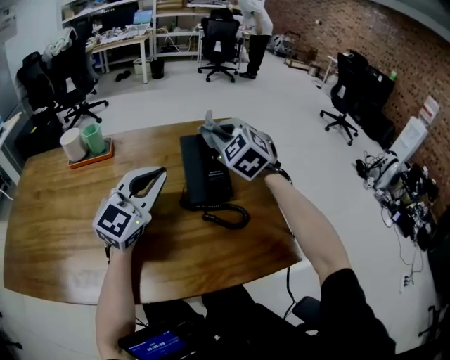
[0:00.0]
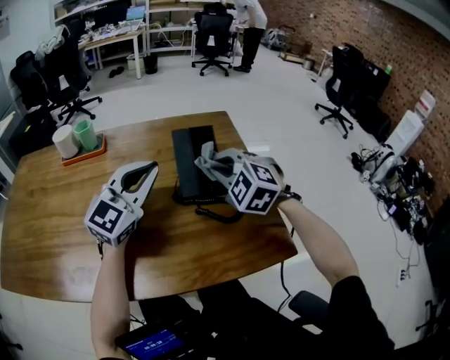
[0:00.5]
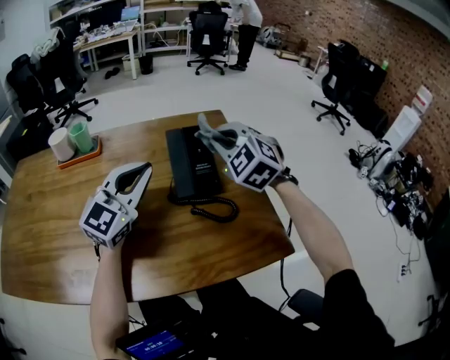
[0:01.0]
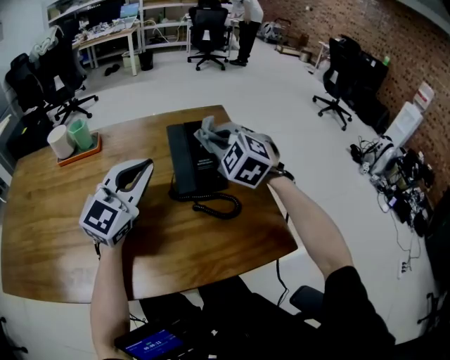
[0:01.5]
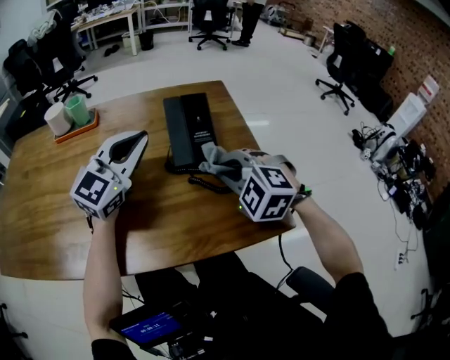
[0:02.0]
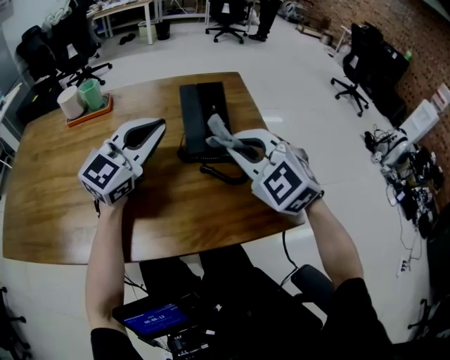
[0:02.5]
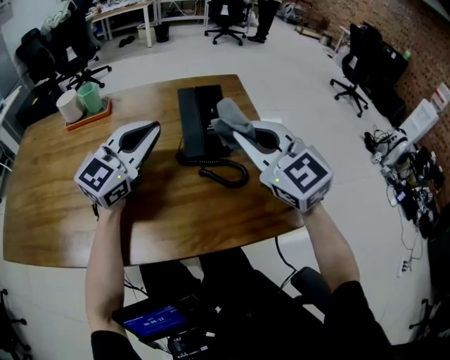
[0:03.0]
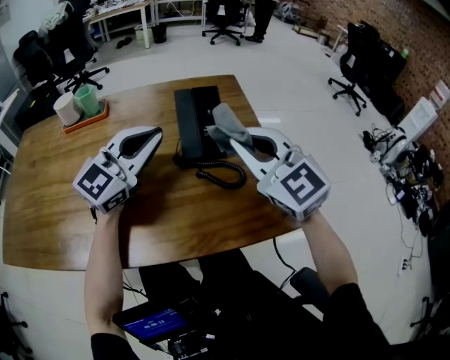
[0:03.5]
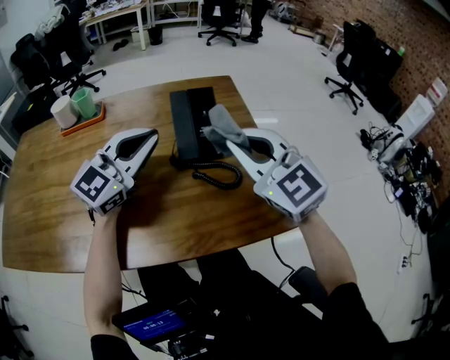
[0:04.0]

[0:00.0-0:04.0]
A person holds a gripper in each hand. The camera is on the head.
0:00.0 to 0:02.0: The right gripper swings forward and backward, roughly 20 cm each way, with 2 reversals, and turns by approximately 20 degrees.
0:02.0 to 0:04.0: The right gripper moves upward, about 10 cm, and points its fingers some 30 degrees further upward.

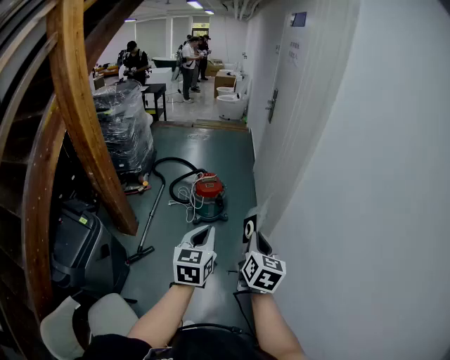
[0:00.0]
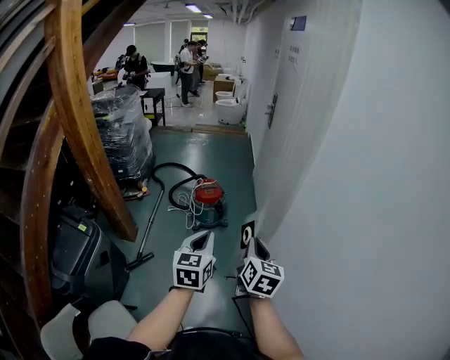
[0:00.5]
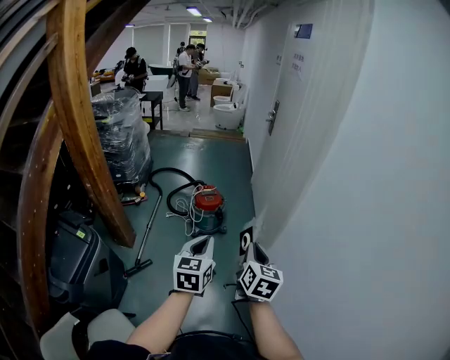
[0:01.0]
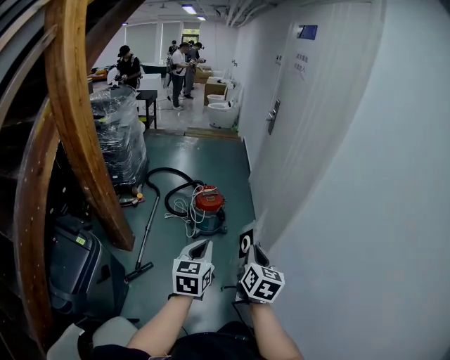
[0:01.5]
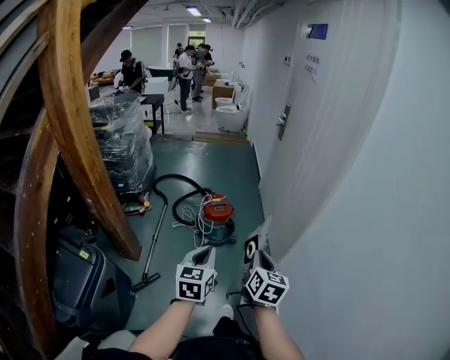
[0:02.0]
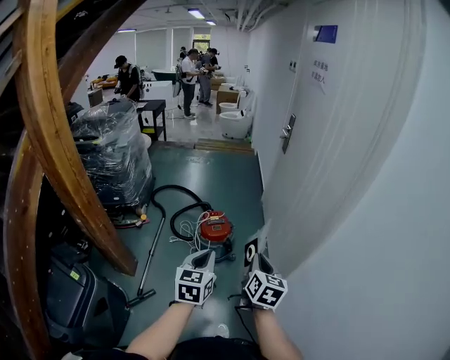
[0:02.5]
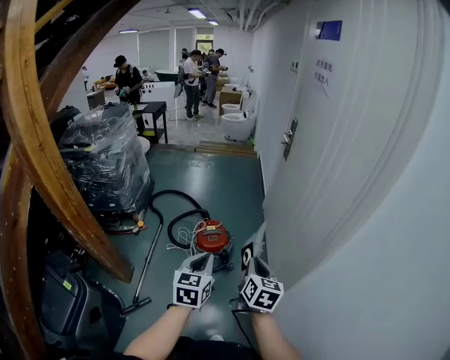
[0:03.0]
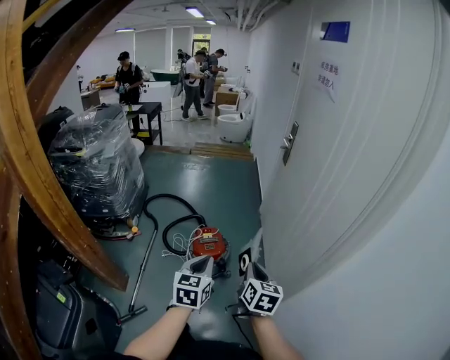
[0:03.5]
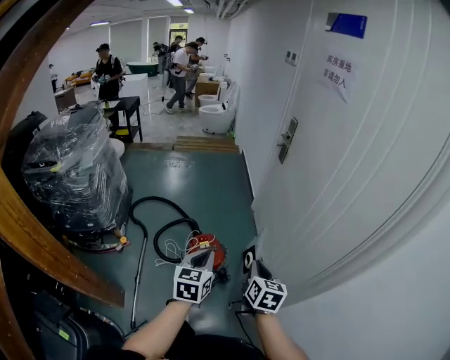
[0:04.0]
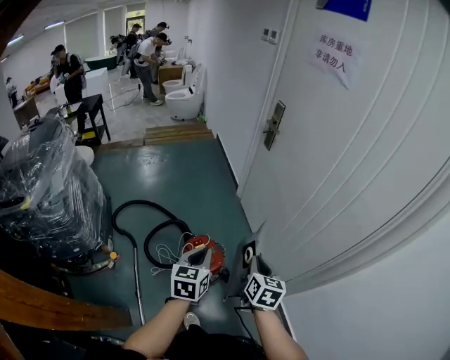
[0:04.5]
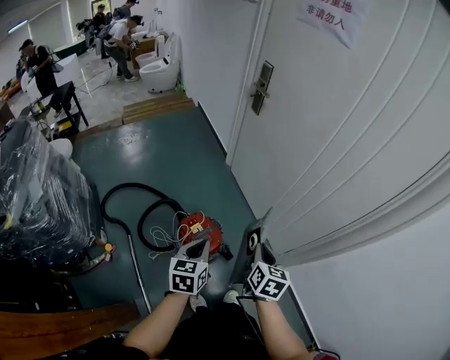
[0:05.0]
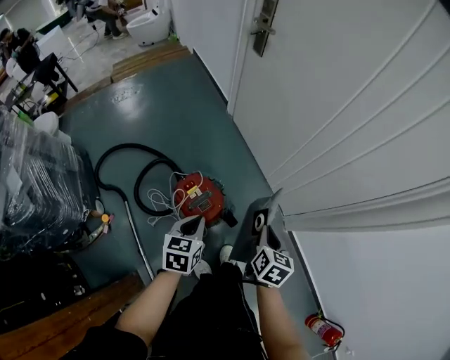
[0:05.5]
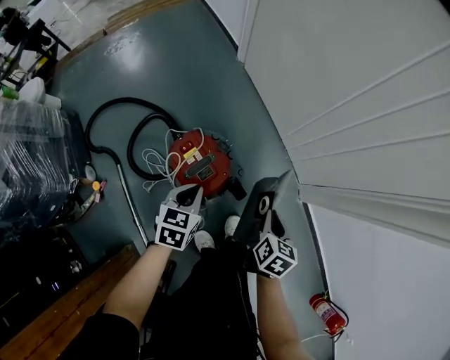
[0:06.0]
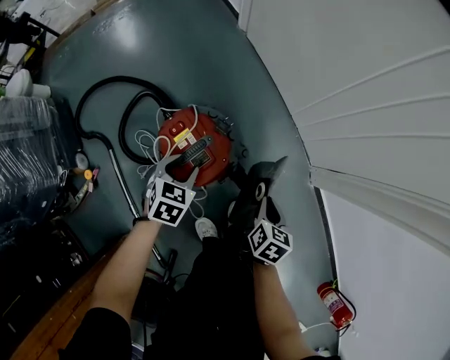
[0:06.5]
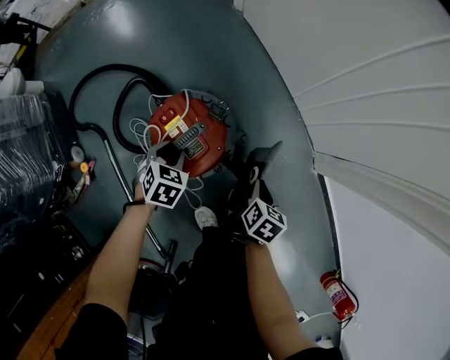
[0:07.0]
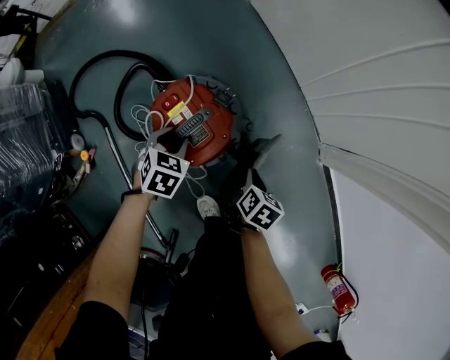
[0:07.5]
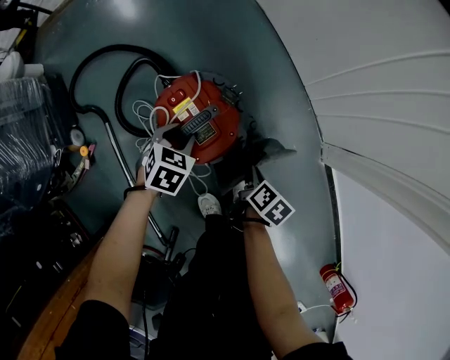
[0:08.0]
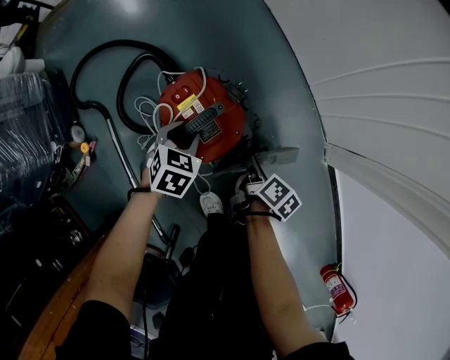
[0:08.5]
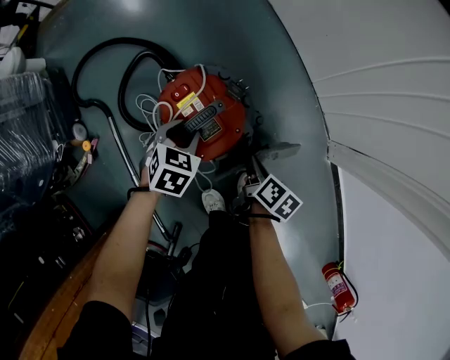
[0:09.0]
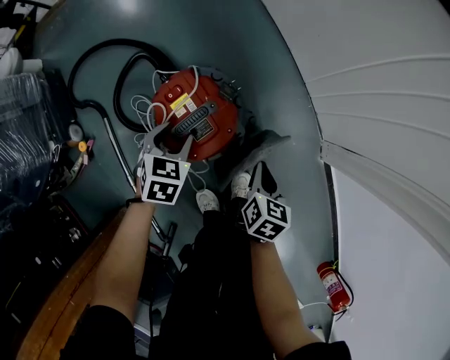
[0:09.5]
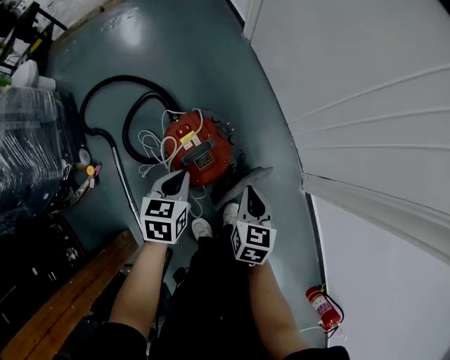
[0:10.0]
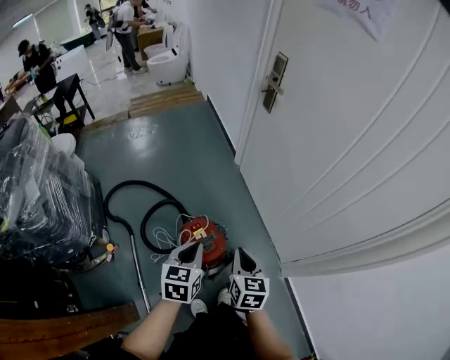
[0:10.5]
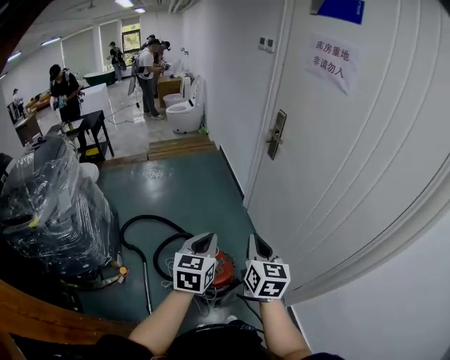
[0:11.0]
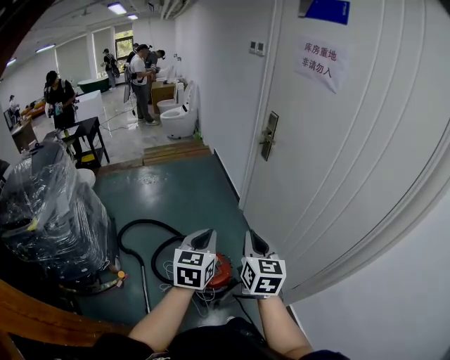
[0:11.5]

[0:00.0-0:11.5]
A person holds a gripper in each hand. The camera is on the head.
0:00.0 to 0:02.0: The two grippers go approximately 15 cm to the left, forward and downward.
0:02.0 to 0:04.0: Both grippers travel together forward, approximately 40 cm.
0:04.0 to 0:06.0: Both grippers move downward, about 35 cm. The right gripper turns by some 40 degrees. Meanwhile the left gripper turns by about 40 degrees.
0:06.0 to 0:07.5: Both grippers move downward, about 20 cm. The left gripper changes its angle by approximately 20 degrees, and opens.
0:07.5 to 0:09.5: The right gripper goes some 5 cm upward.
0:09.5 to 0:11.5: Both grippers travel together upward, roughly 50 cm. The right gripper points its fingers roughly 40 degrees further upward. Meanwhile the left gripper points its fingers approximately 40 degrees further upward, and closes.

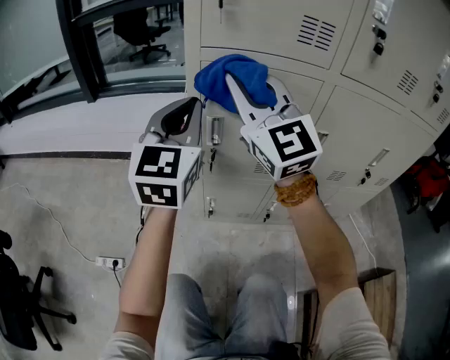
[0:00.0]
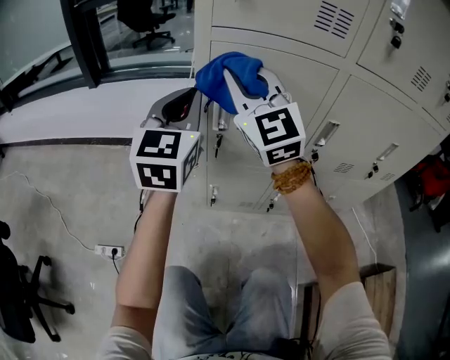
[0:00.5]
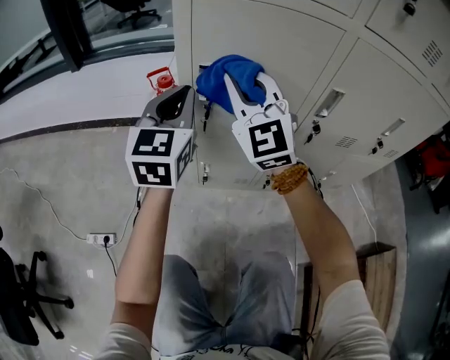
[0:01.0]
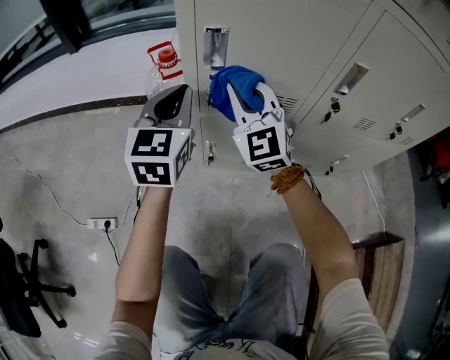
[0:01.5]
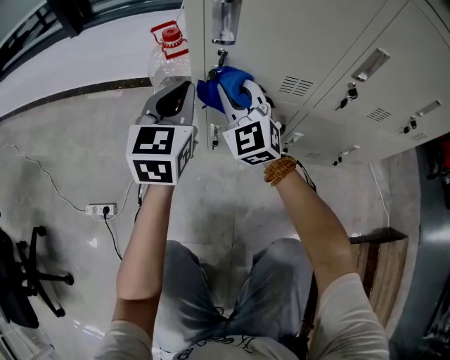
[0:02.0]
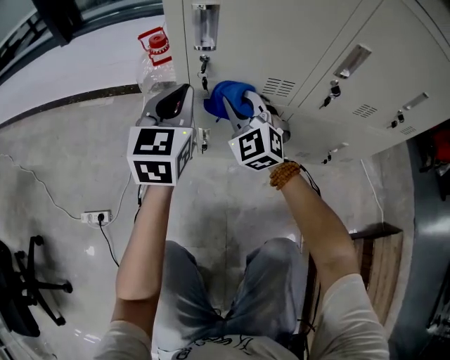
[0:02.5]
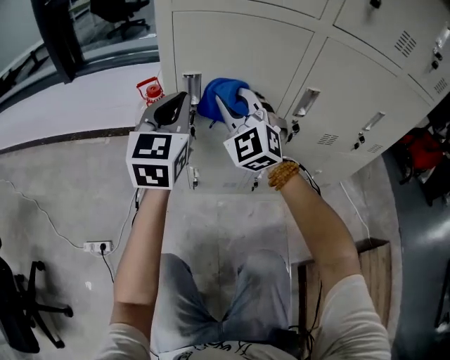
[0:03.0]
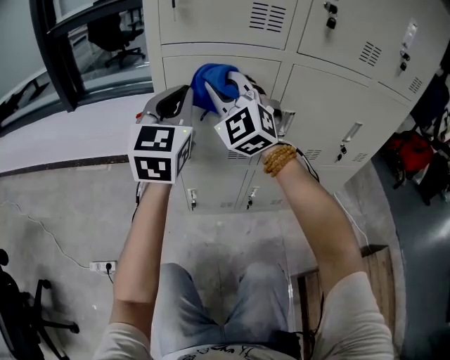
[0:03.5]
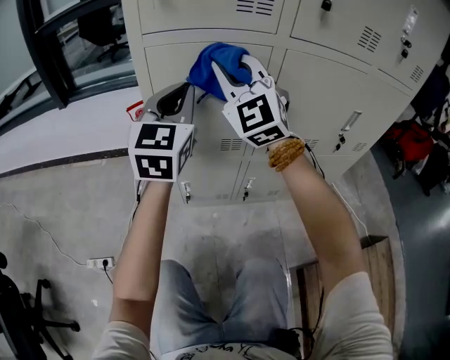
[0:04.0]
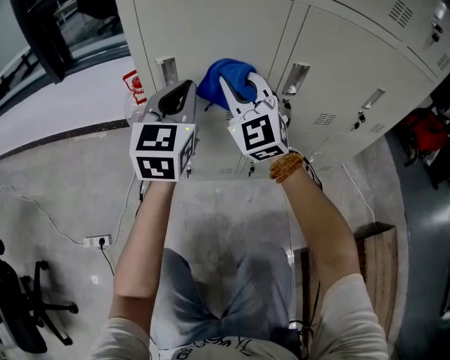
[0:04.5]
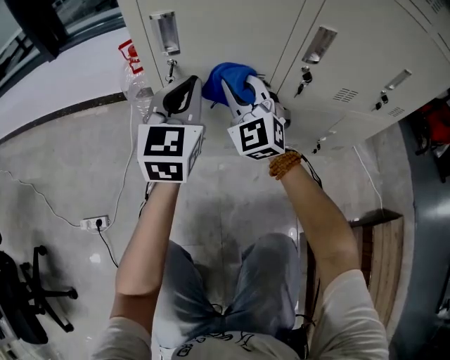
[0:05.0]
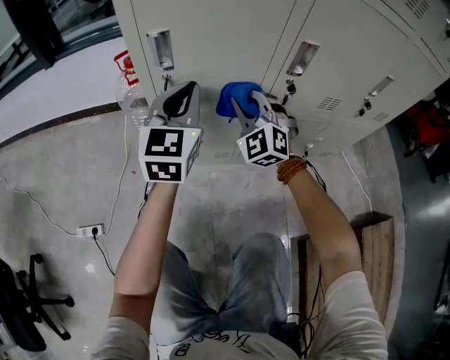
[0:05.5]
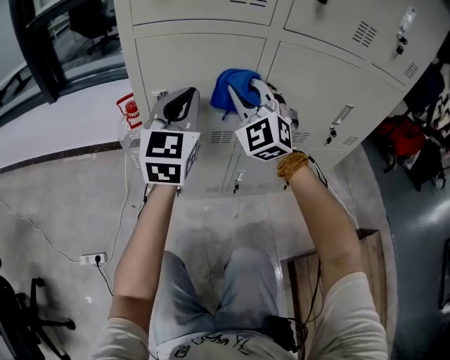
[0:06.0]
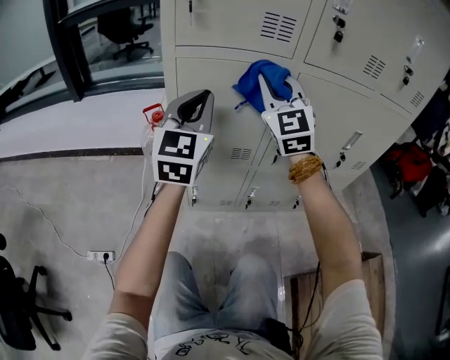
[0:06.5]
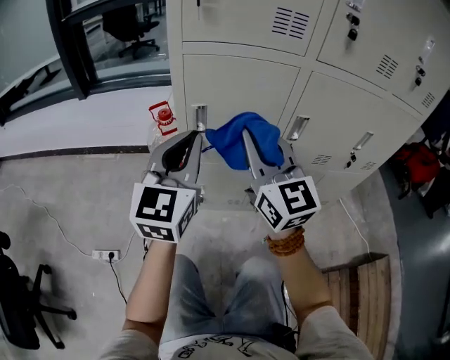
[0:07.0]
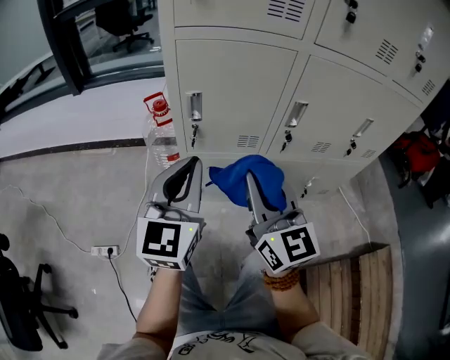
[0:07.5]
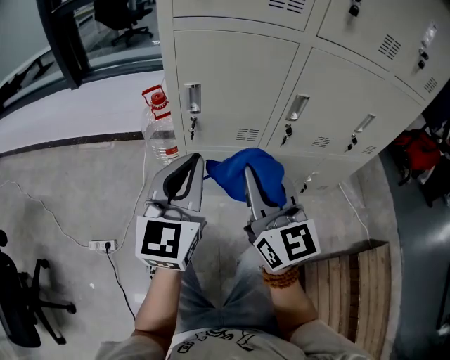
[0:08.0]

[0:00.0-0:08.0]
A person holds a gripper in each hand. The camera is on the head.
0:00.0 to 0:02.0: Both grippers travel together downward, roughly 30 cm. The right gripper swivels approximately 30 degrees.
0:02.0 to 0:04.0: The right gripper moves upward, approximately 30 cm. Meanwhile the left gripper moves upward and to the right, about 25 cm.
0:04.0 to 0:06.0: The left gripper goes downward and returns, some 20 cm each way. The right gripper goes some 5 cm to the right, and moves some 30 cm downward and comes back.
0:06.0 to 0:08.0: The left gripper travels backward and to the left by approximately 15 cm, while the right gripper shifts some 20 cm backward, and rolls clockwise, seen from behind, by some 60 degrees.

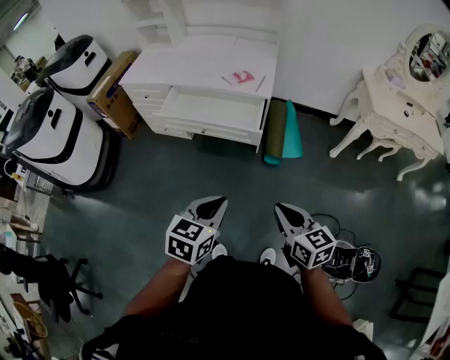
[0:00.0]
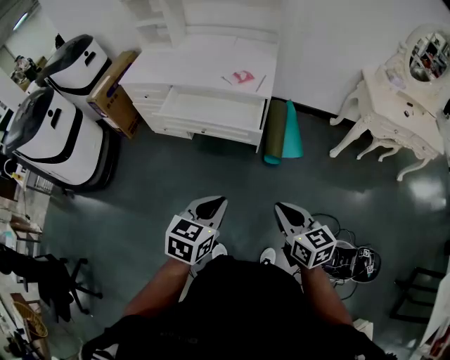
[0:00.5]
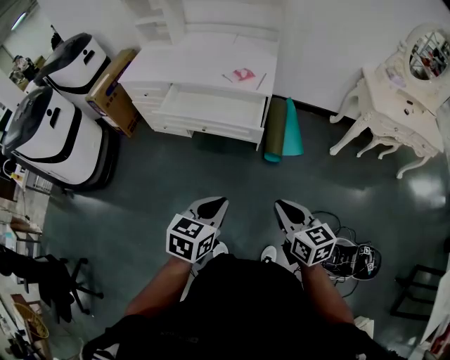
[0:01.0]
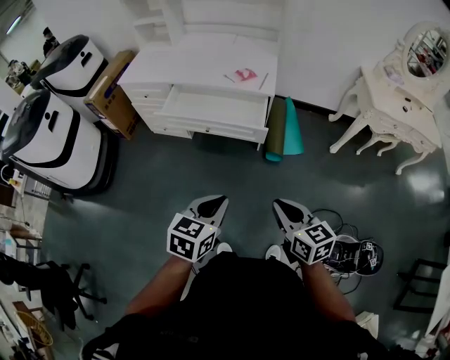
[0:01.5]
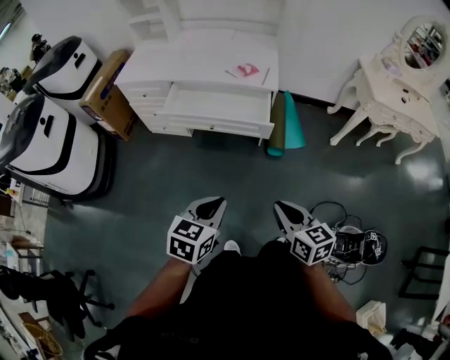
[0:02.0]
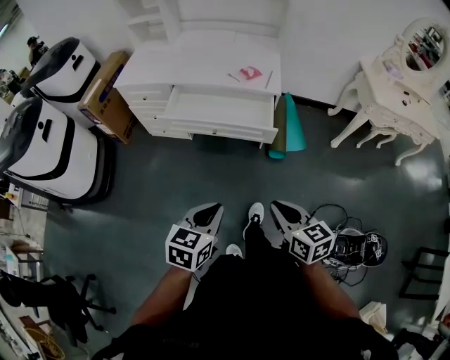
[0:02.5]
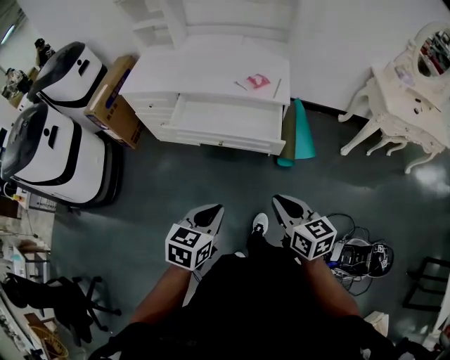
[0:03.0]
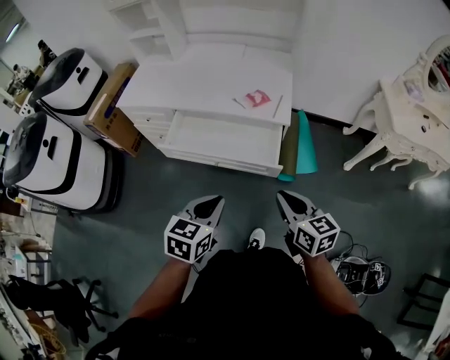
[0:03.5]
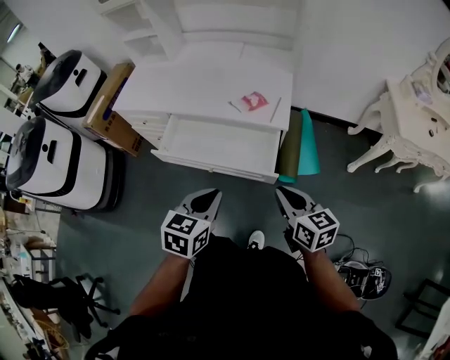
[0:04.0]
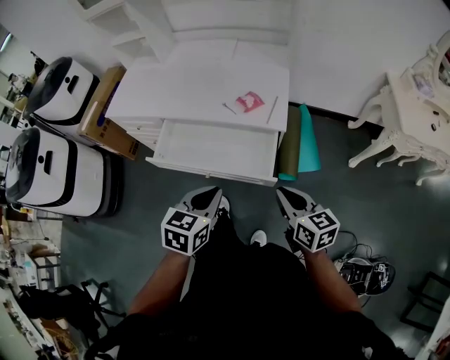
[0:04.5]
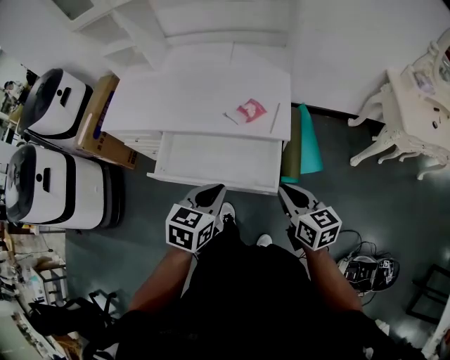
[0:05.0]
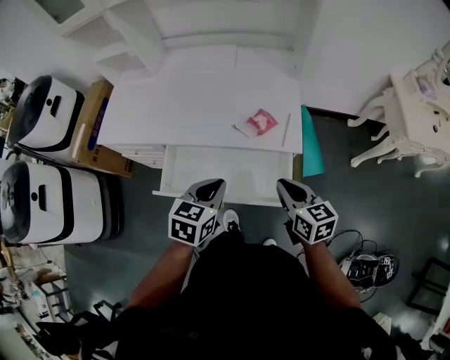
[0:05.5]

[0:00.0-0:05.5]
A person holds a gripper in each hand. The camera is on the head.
0:00.0 to 0:02.0: The two grippers go about 10 cm to the left.
0:02.0 to 0:03.5: The grippers both shift forward by approximately 20 cm.
0:03.5 to 0:05.5: The grippers both shift forward by about 25 cm.
